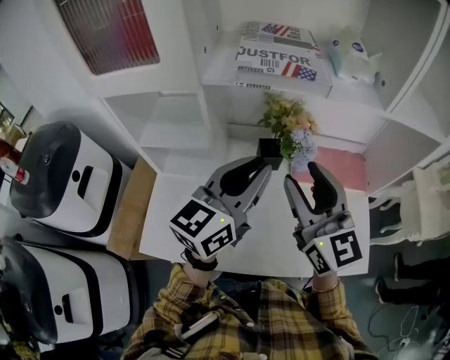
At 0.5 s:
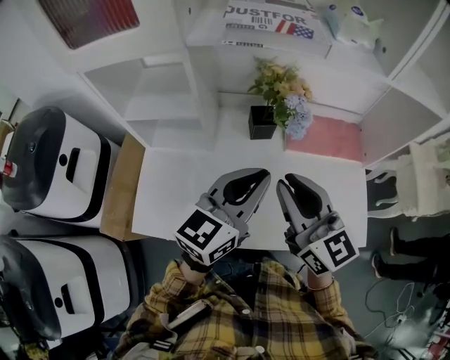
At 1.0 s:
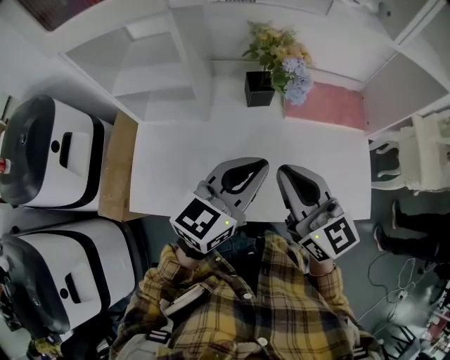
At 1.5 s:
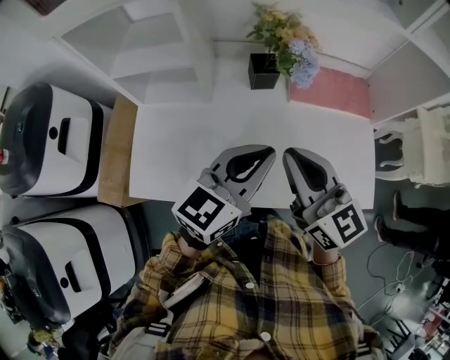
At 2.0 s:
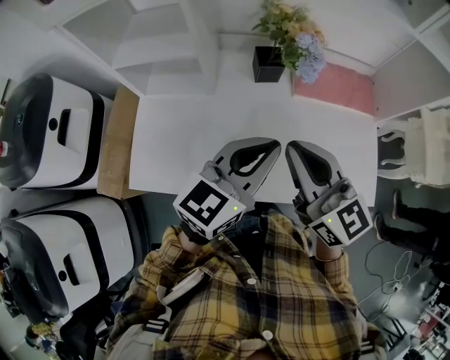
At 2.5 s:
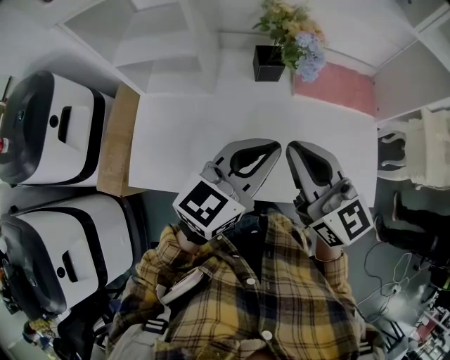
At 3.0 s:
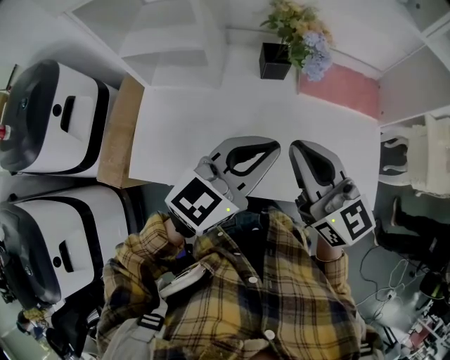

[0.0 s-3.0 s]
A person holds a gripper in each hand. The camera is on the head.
0.0 to 1.5 s: Both grippers move downward and backward, about 15 cm. The right gripper closes up.
1.5 to 3.0 s: There are only small adjustments of the grippers.

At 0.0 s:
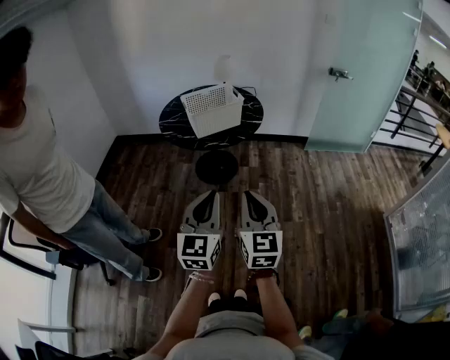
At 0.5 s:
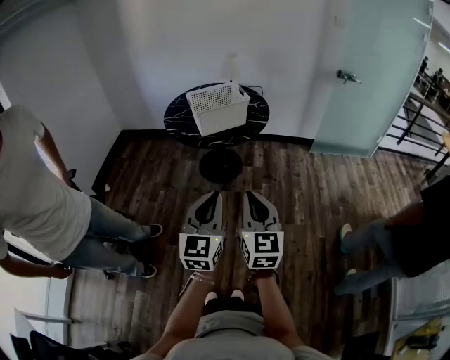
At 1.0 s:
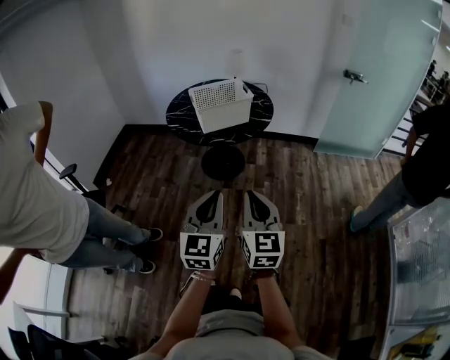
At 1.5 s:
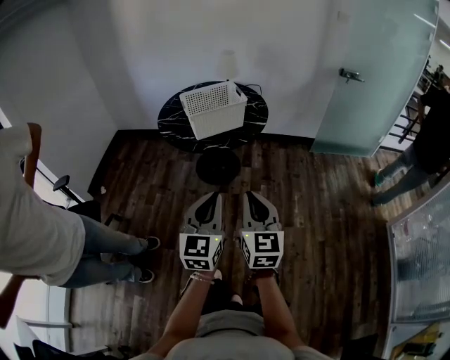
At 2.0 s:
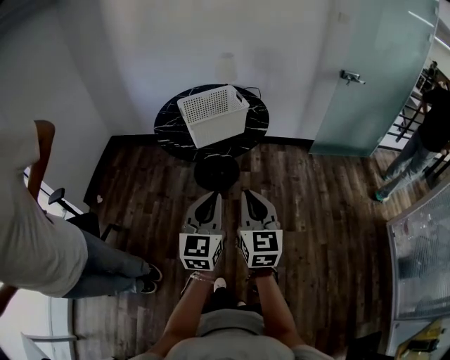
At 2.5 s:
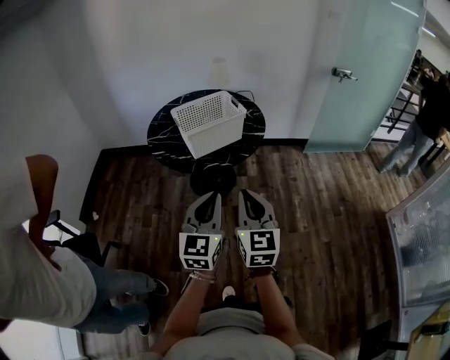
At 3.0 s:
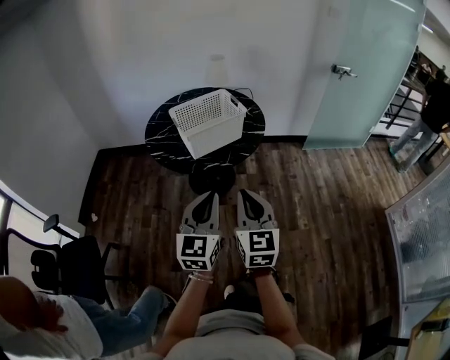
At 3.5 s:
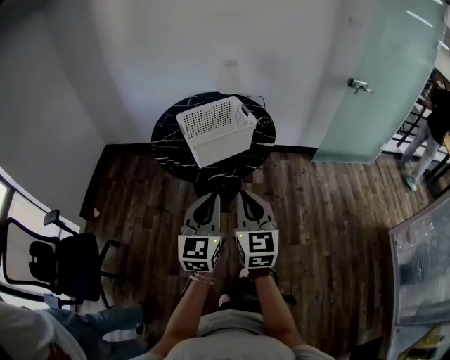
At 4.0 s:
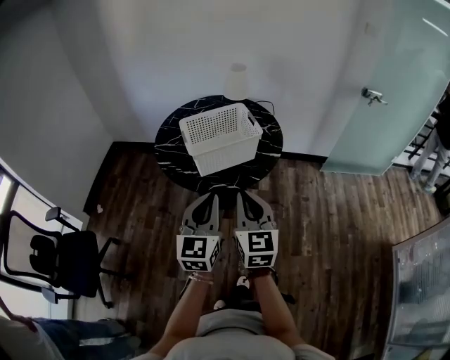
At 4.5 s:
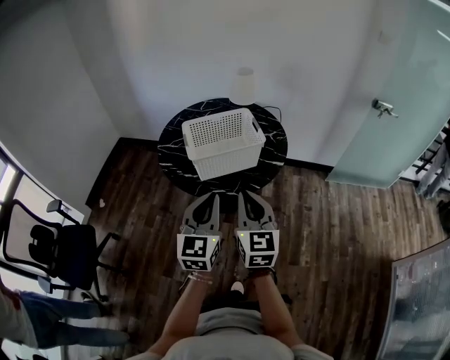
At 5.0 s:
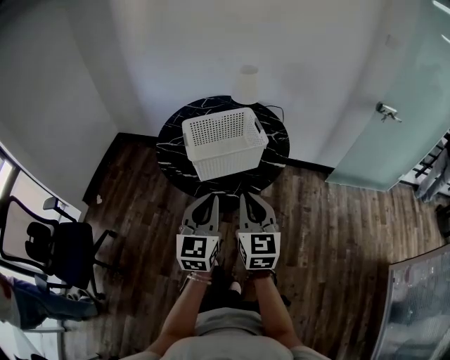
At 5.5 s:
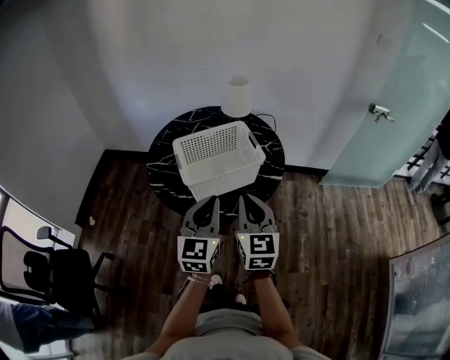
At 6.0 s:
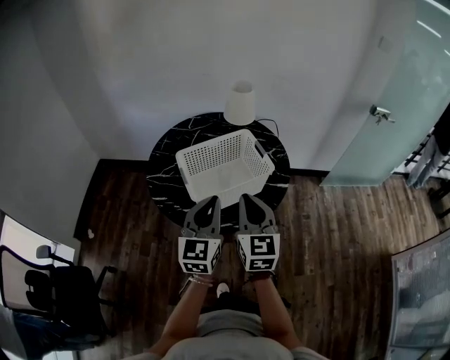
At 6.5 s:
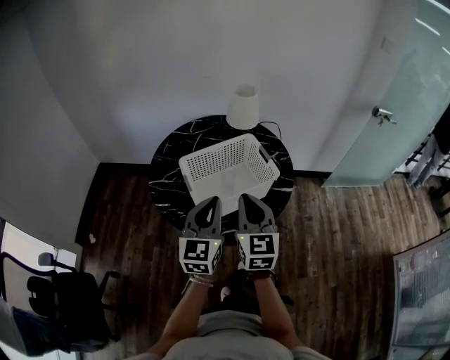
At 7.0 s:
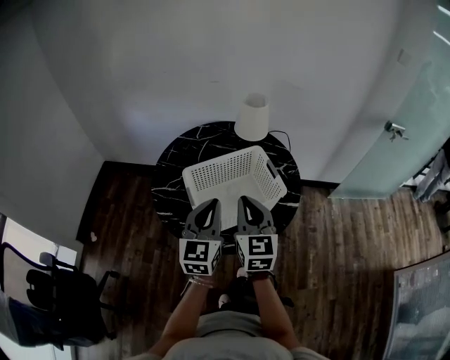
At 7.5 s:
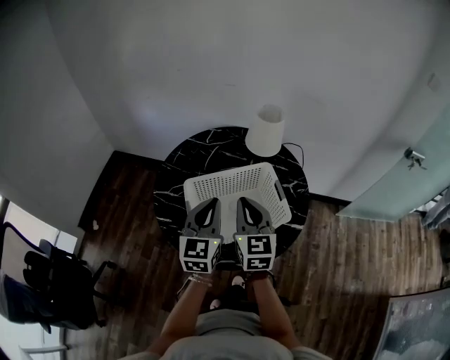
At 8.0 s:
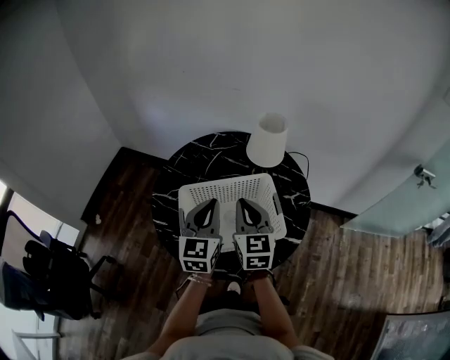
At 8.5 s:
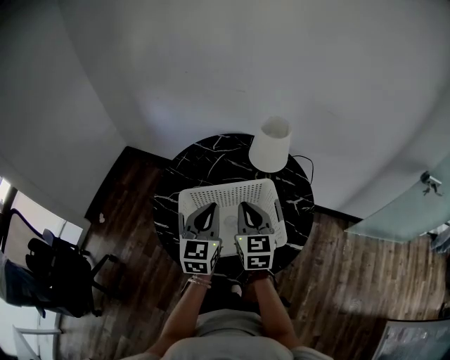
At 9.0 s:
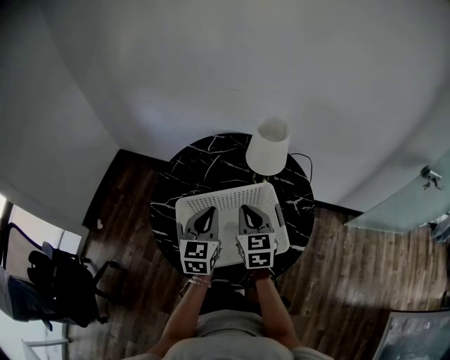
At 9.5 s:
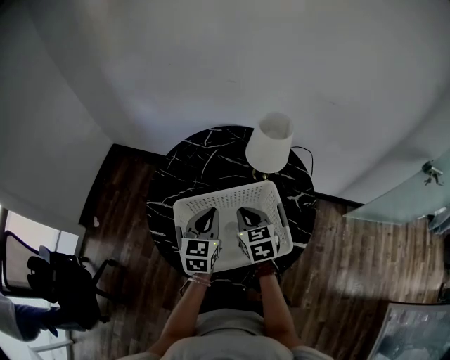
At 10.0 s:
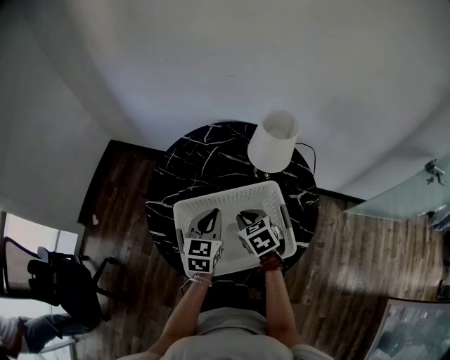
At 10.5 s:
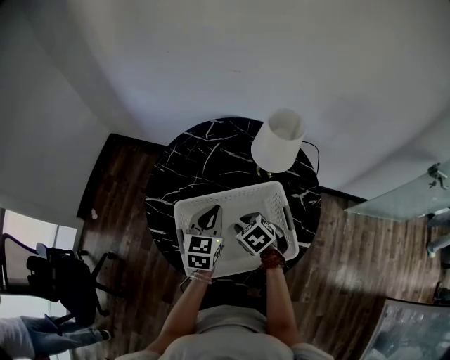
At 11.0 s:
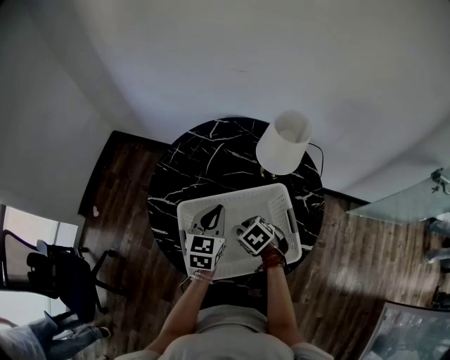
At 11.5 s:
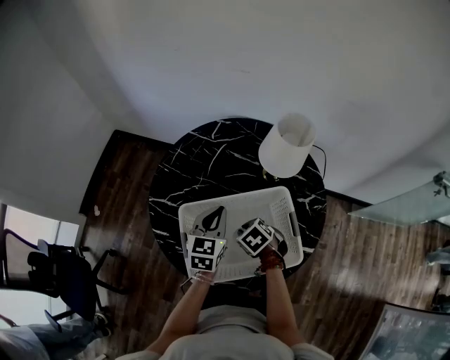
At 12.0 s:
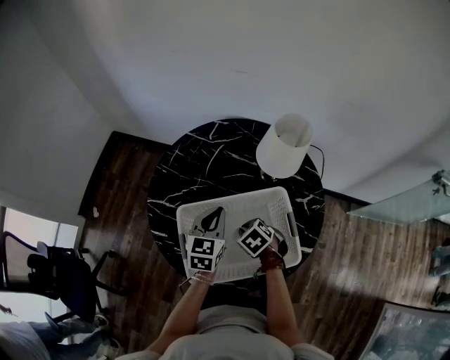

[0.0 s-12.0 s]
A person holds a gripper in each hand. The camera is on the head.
0.0 to 2.0 s: Both grippers move forward, approximately 15 cm.
2.0 to 4.0 s: Both grippers travel together forward, roughly 20 cm.
4.0 to 6.0 s: The grippers both shift forward by roughly 20 cm.
6.0 to 8.0 s: The grippers both shift forward by some 25 cm.
8.0 to 10.0 s: Both grippers travel together downward and forward, approximately 15 cm. The right gripper points its fingers approximately 40 degrees further downward.
10.0 to 12.0 s: The right gripper heads downward, covering some 10 cm, and rotates some 20 degrees.

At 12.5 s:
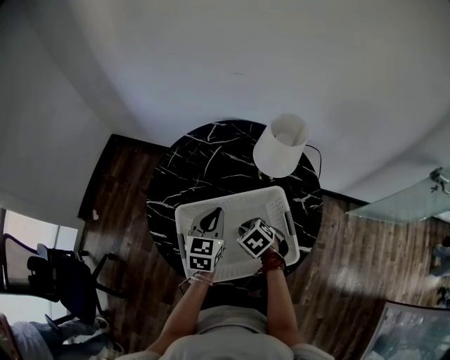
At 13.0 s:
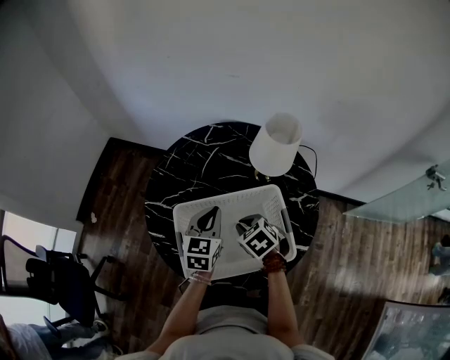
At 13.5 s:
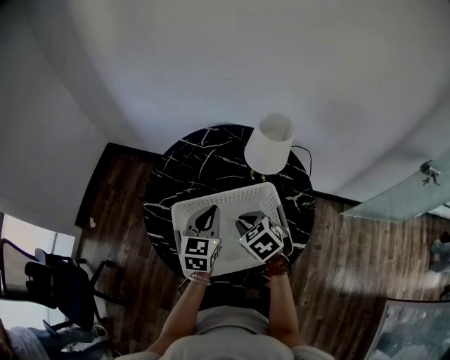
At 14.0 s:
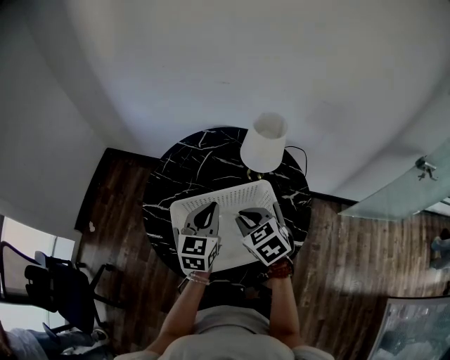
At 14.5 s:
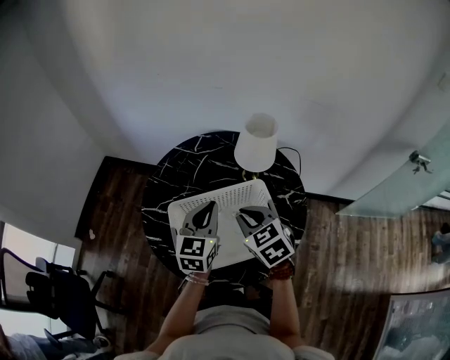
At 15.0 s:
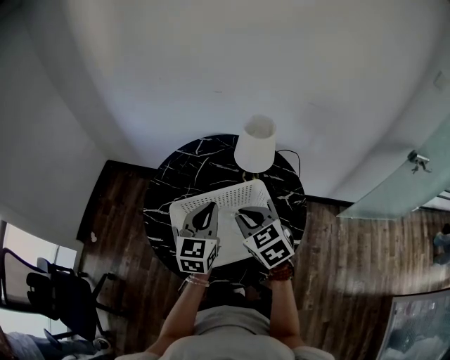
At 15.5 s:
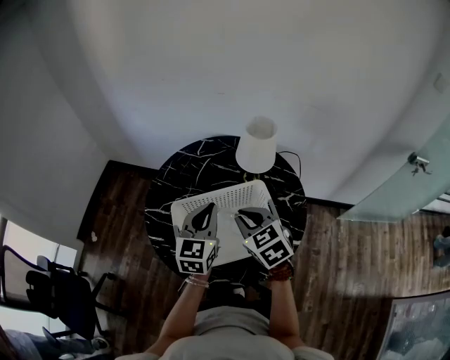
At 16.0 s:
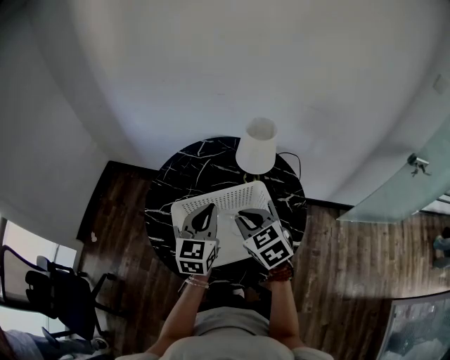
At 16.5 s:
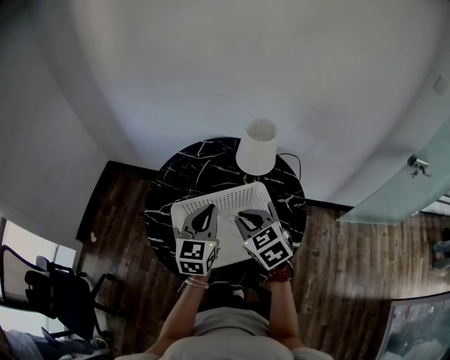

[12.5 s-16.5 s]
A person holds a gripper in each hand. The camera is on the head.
12.5 to 14.5 s: The left gripper is displaced upward by roughly 10 cm; the right gripper goes approximately 20 cm upward, and swivels approximately 30 degrees.
14.5 to 16.5 s: There are only small adjustments of the grippers.

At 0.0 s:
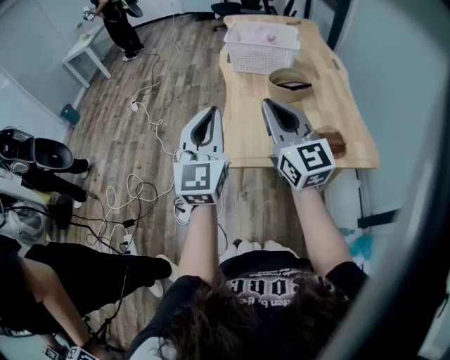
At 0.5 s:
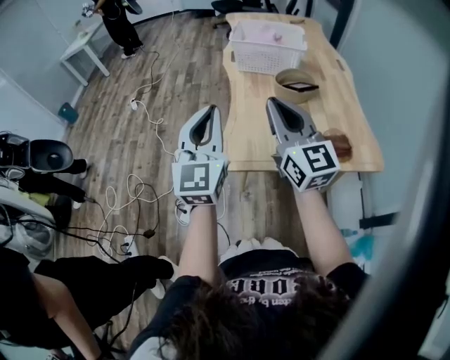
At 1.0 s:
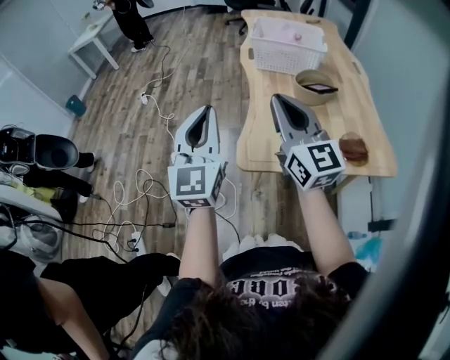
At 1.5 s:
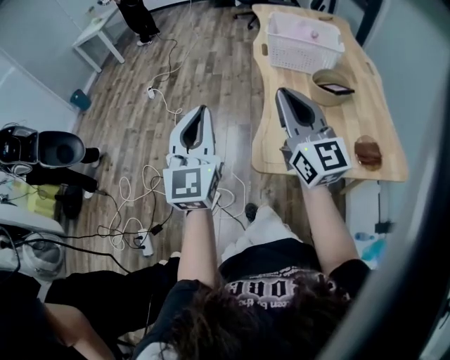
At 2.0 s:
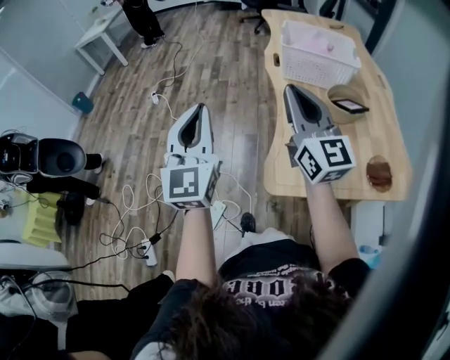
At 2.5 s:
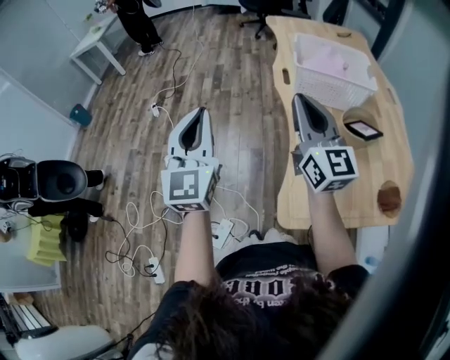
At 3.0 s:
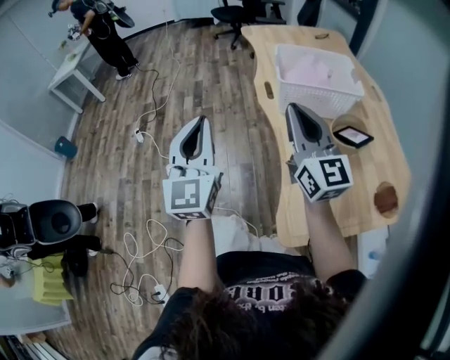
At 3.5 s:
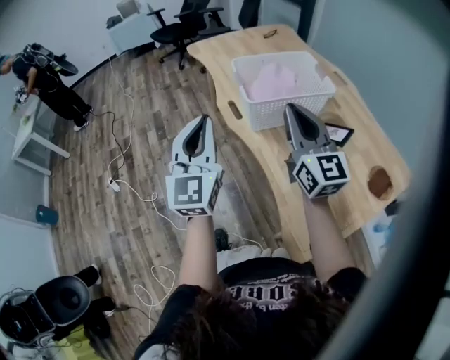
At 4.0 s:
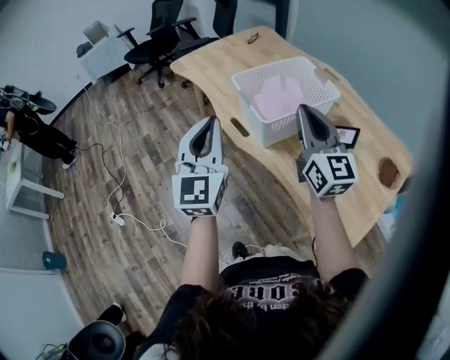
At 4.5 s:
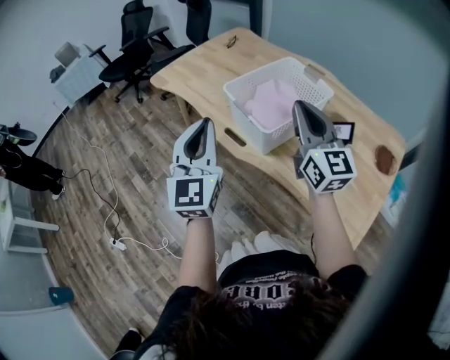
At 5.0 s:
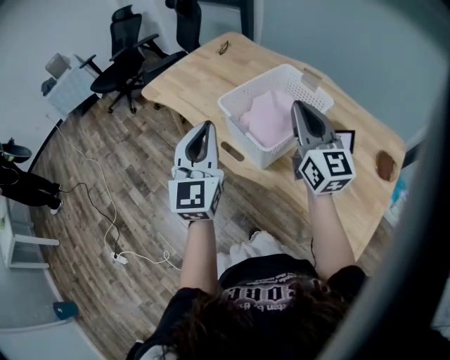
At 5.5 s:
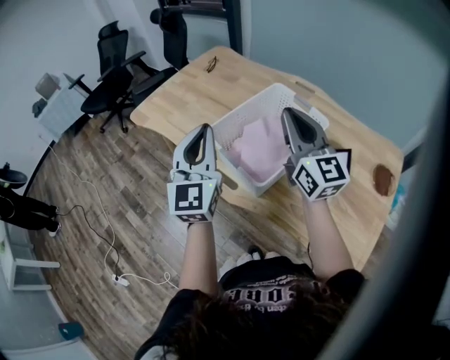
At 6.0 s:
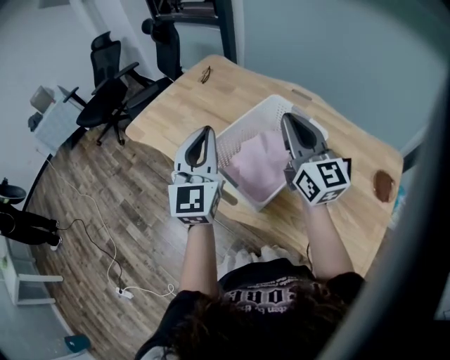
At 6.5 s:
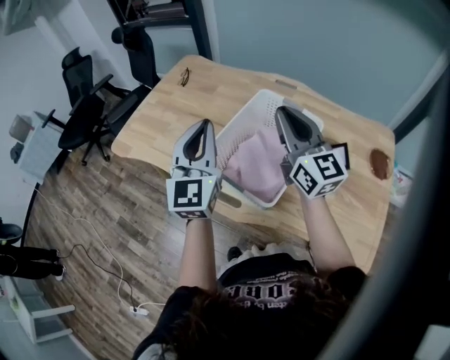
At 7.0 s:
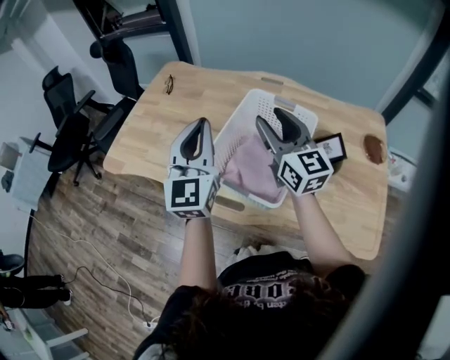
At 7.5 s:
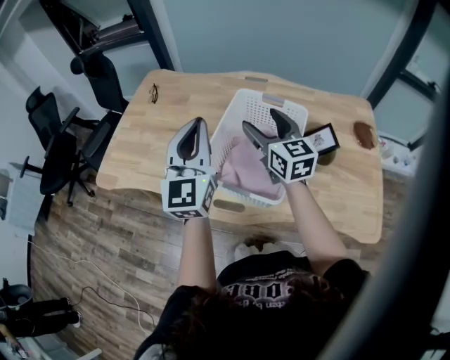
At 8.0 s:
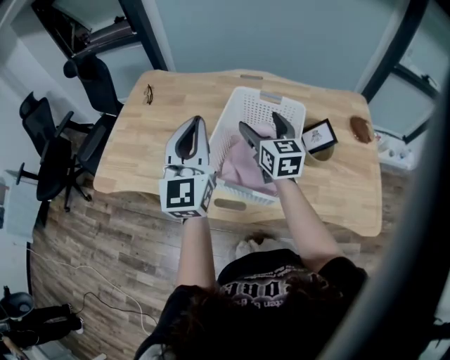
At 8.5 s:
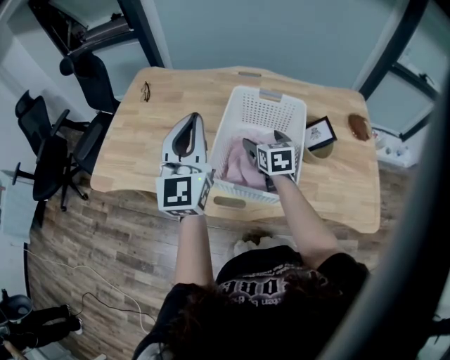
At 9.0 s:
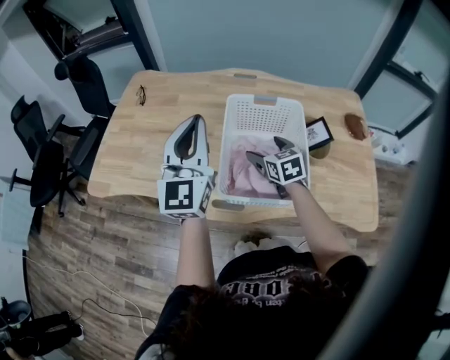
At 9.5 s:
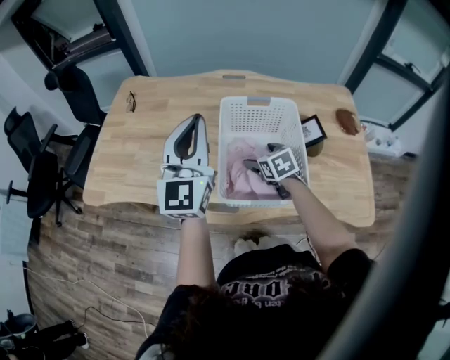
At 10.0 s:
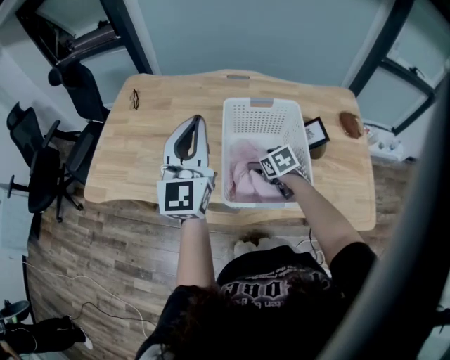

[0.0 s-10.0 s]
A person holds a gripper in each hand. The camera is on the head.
0.0 to 2.0 s: The left gripper is displaced to the left and forward by roughly 25 cm; the right gripper is displaced forward and to the left by some 20 cm.
2.0 to 4.0 s: The left gripper shifts by approximately 40 cm, and turns by roughly 40 degrees. The right gripper moves roughly 30 cm, and turns by about 40 degrees.
4.0 to 6.0 s: The grippers both shift forward by approximately 20 cm.
6.0 to 8.0 s: The right gripper moves downward, roughly 15 cm, changes its angle by approximately 40 degrees, and opens its fingers. Meanwhile the left gripper moves roughly 10 cm, and rotates roughly 30 degrees.
8.0 to 10.0 s: The right gripper travels downward by roughly 20 cm, and angles its fingers downward, by approximately 40 degrees.
